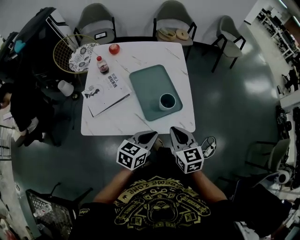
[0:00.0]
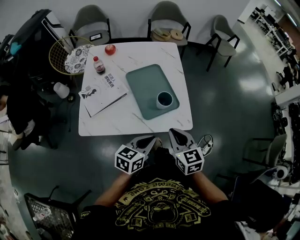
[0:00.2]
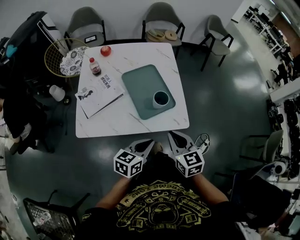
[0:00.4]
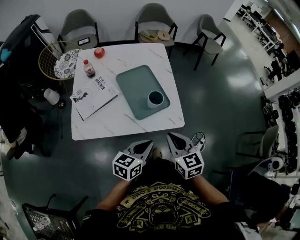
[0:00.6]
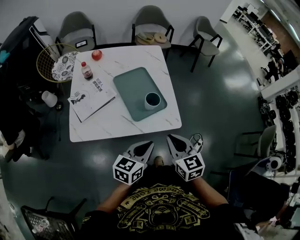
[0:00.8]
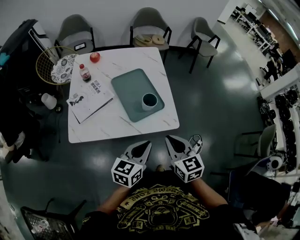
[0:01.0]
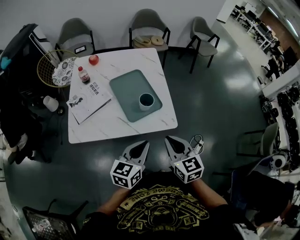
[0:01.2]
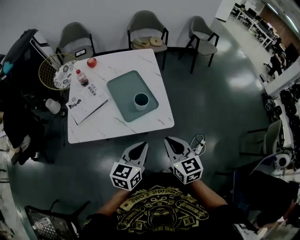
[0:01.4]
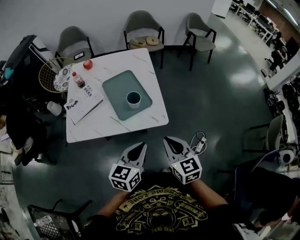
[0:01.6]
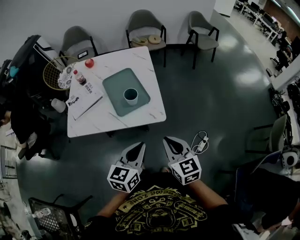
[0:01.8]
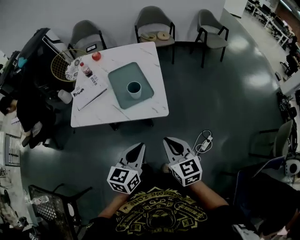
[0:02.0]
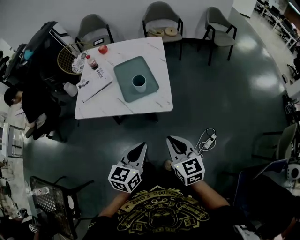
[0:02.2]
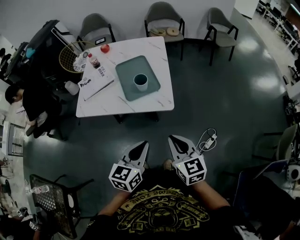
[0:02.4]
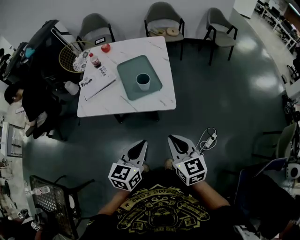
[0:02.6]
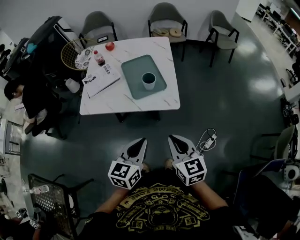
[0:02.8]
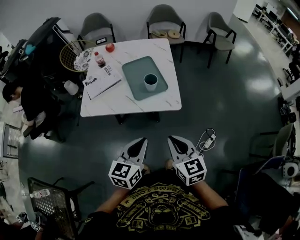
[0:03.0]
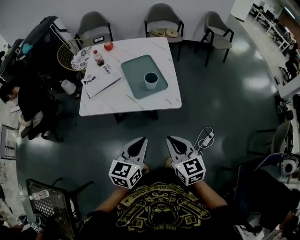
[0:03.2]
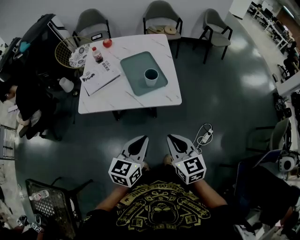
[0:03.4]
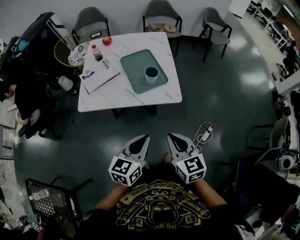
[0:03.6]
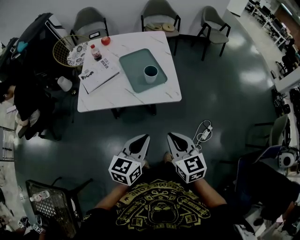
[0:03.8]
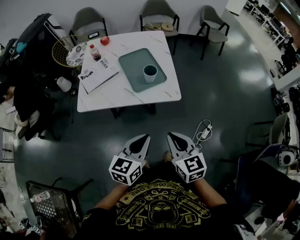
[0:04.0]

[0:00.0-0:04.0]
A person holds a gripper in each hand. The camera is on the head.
0:00.0 to 0:01.4: The right gripper goes approximately 10 cm to the right and backward. The left gripper heads backward, upward and to the right, covering some 10 cm.
0:01.4 to 0:02.6: The right gripper moves backward and to the right, some 10 cm; the left gripper moves backward, approximately 10 cm.
0:02.6 to 0:04.0: Both grippers travel together to the left, approximately 5 cm.

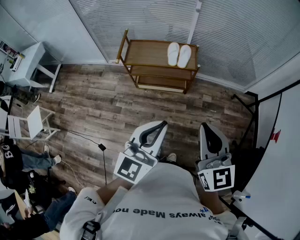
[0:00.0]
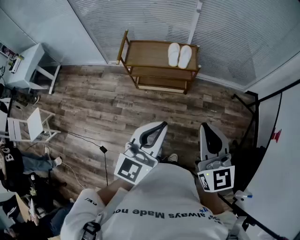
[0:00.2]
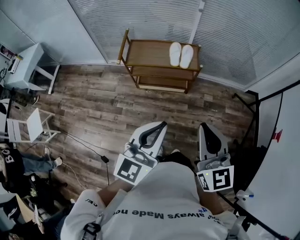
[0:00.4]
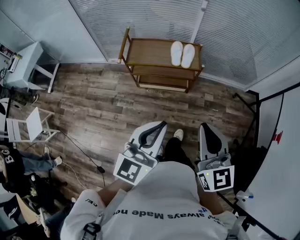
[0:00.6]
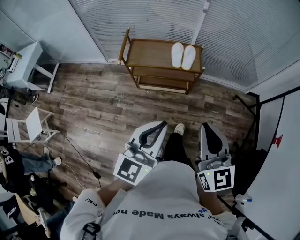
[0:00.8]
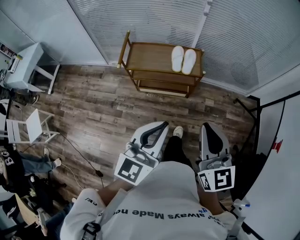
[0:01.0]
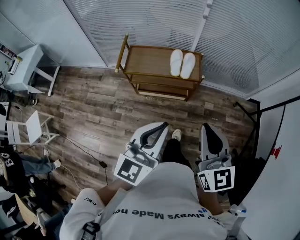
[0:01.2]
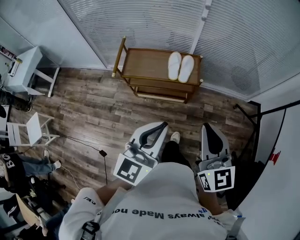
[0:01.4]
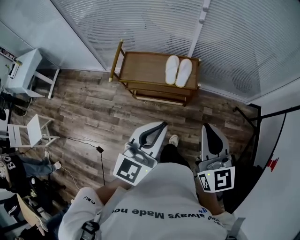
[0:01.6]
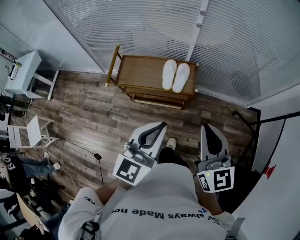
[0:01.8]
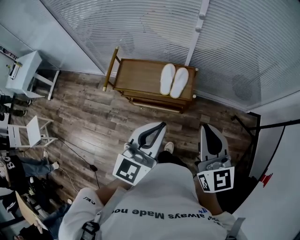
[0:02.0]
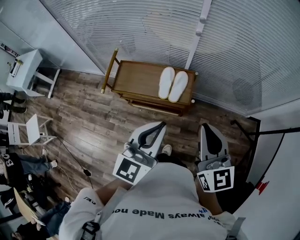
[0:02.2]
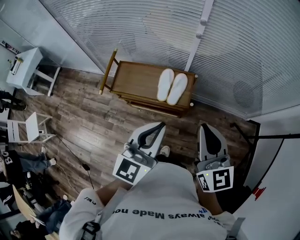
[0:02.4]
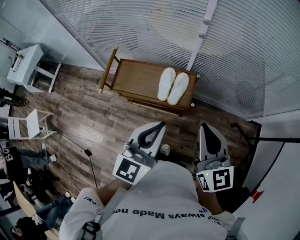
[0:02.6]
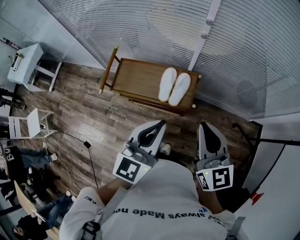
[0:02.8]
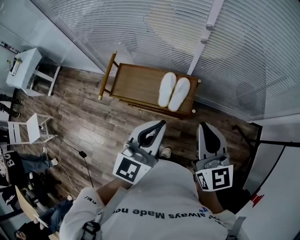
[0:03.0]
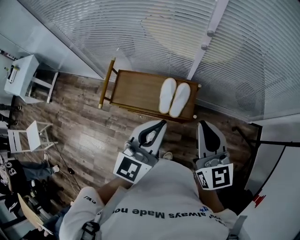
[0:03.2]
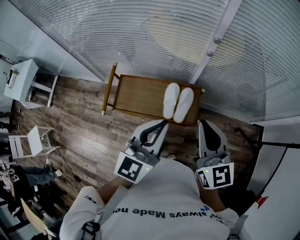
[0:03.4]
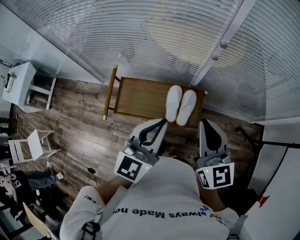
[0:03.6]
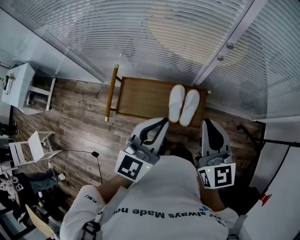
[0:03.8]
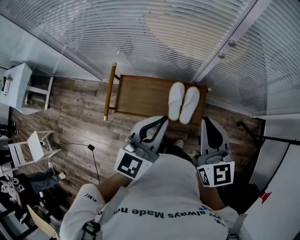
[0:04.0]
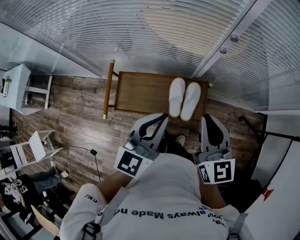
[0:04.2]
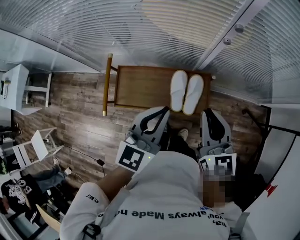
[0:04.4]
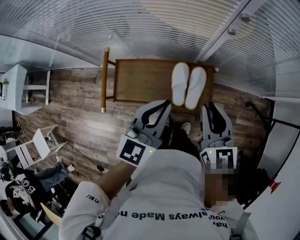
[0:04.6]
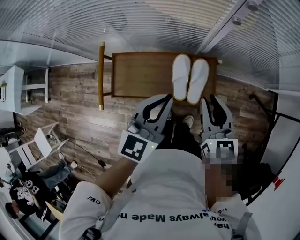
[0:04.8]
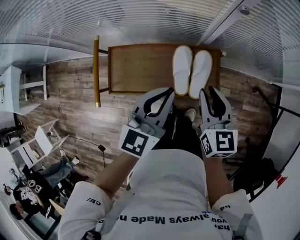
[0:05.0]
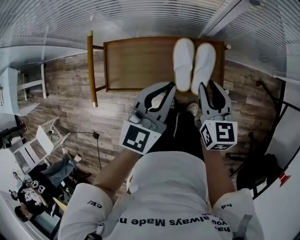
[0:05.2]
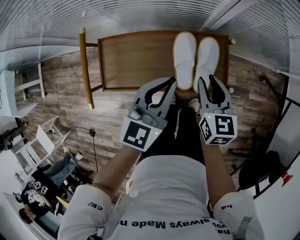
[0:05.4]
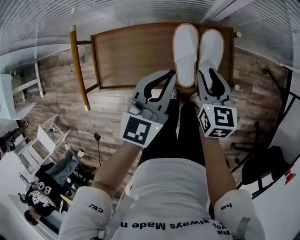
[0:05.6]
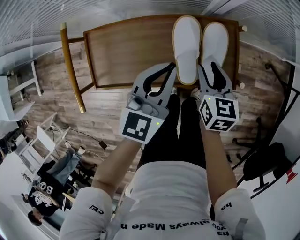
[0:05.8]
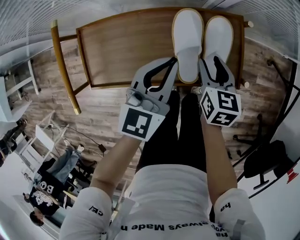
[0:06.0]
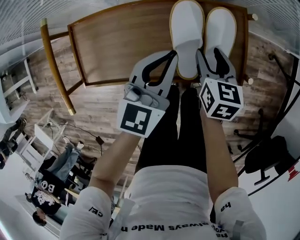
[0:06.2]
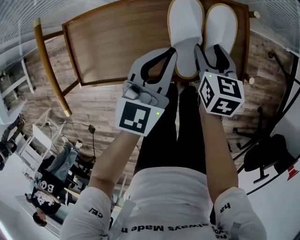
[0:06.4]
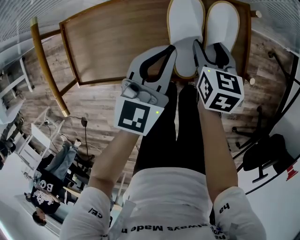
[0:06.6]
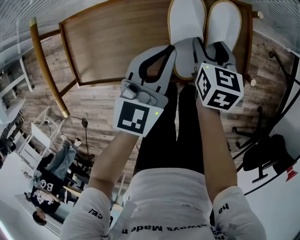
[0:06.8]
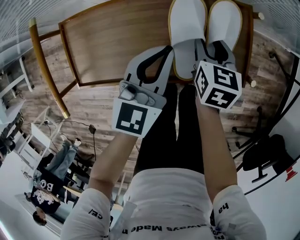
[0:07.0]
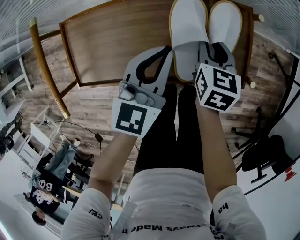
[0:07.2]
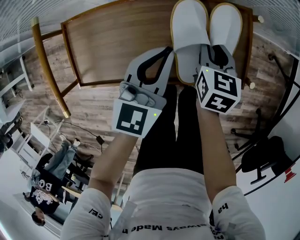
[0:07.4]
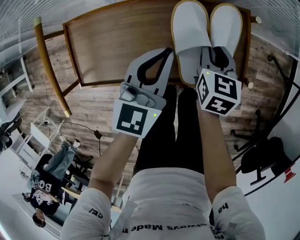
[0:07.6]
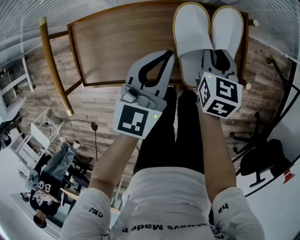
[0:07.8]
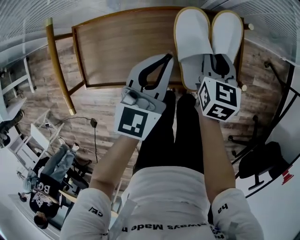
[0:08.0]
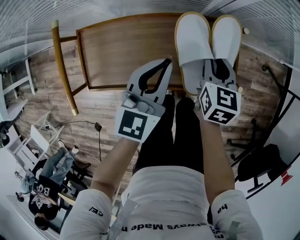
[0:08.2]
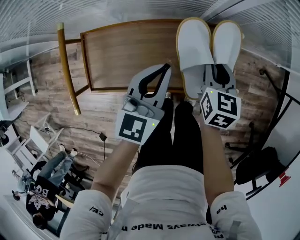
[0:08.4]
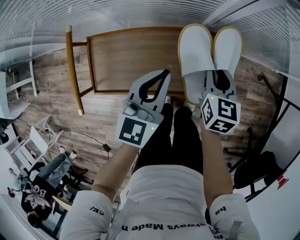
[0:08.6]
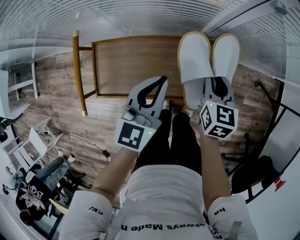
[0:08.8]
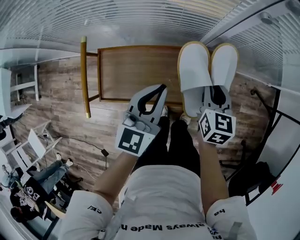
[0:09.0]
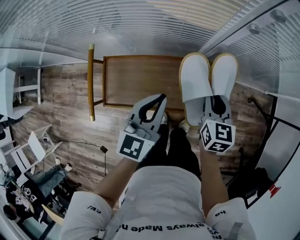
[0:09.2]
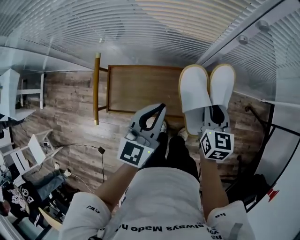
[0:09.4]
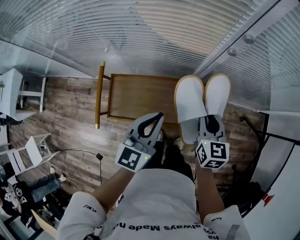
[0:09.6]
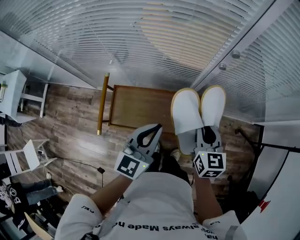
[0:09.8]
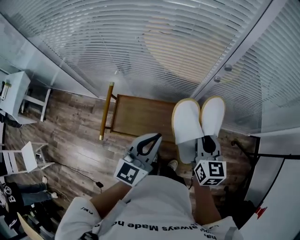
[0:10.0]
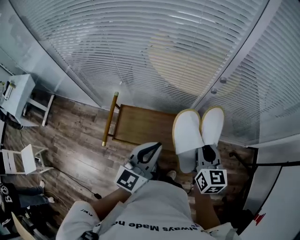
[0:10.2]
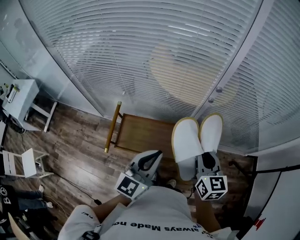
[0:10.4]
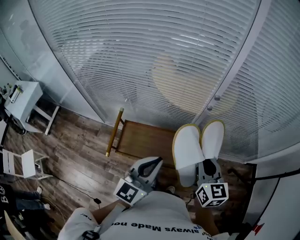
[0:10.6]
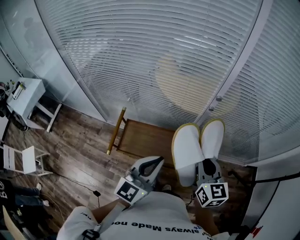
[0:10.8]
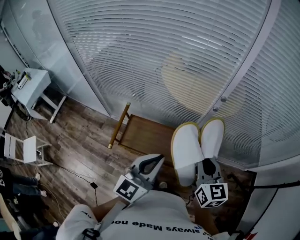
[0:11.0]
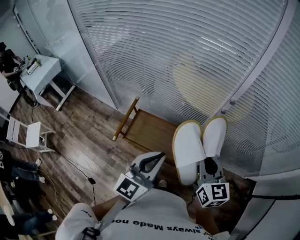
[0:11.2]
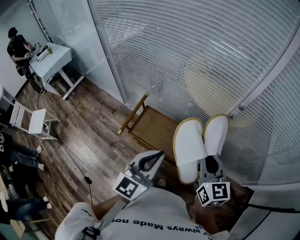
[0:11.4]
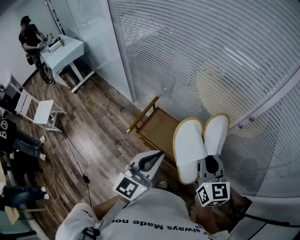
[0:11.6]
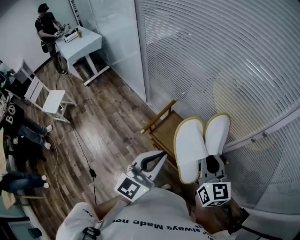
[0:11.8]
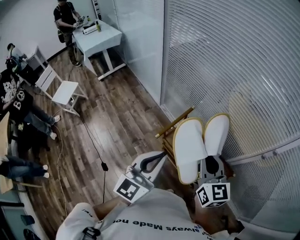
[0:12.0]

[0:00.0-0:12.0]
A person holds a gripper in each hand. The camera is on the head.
0:00.0 to 0:01.6: Both grippers travel together forward, some 20 cm.
0:01.6 to 0:03.0: The two grippers go some 20 cm forward.
0:03.0 to 0:04.4: The two grippers go some 20 cm forward, to the left and downward.
0:04.4 to 0:06.0: Both grippers travel together downward, some 35 cm. The right gripper rotates approximately 30 degrees, and opens up.
0:06.0 to 0:07.6: The right gripper closes its fingers.
0:07.6 to 0:09.0: The two grippers go about 15 cm upward.
0:09.0 to 0:10.4: The right gripper shifts about 30 cm upward, and swivels roughly 20 degrees, while the left gripper goes approximately 25 cm upward and backward.
0:10.4 to 0:12.0: The left gripper shifts by about 25 cm, and rotates some 40 degrees, while the right gripper moves approximately 30 cm, and swivels roughly 40 degrees.

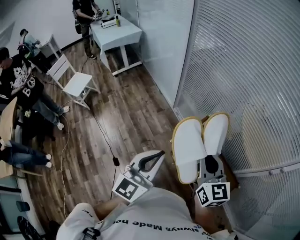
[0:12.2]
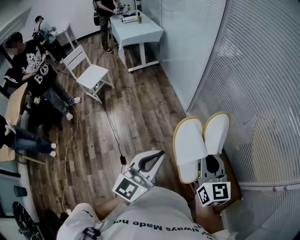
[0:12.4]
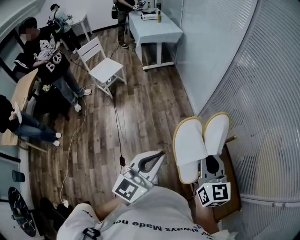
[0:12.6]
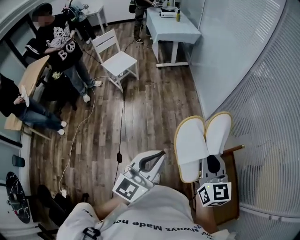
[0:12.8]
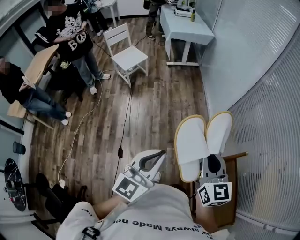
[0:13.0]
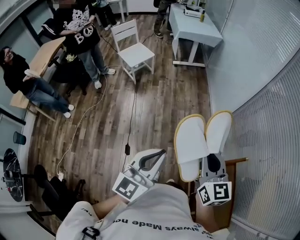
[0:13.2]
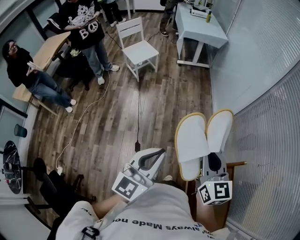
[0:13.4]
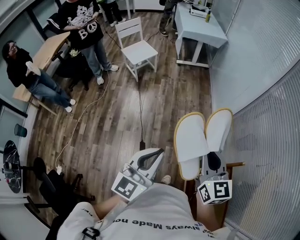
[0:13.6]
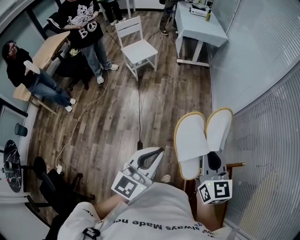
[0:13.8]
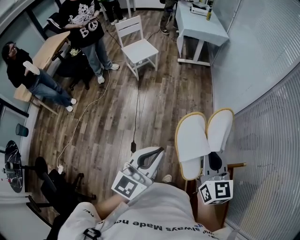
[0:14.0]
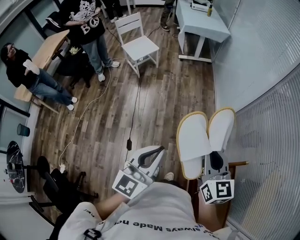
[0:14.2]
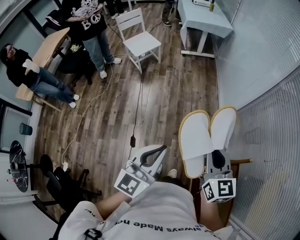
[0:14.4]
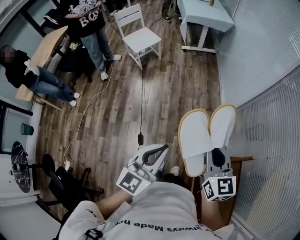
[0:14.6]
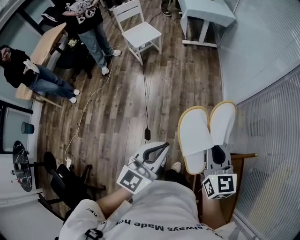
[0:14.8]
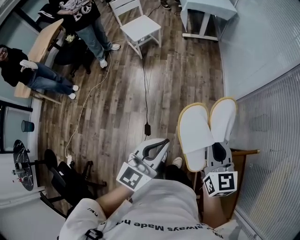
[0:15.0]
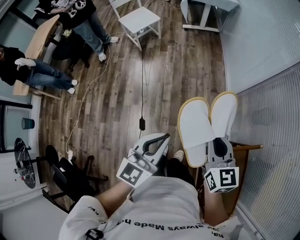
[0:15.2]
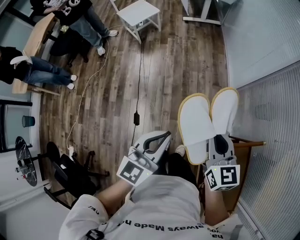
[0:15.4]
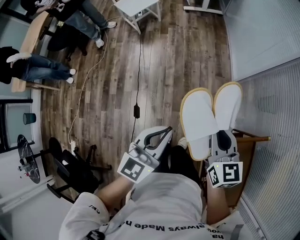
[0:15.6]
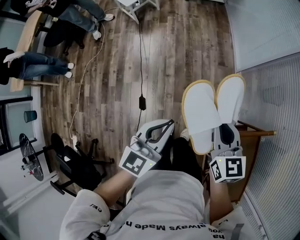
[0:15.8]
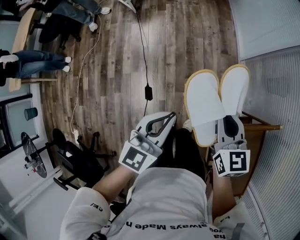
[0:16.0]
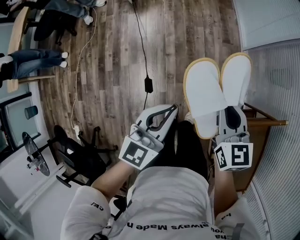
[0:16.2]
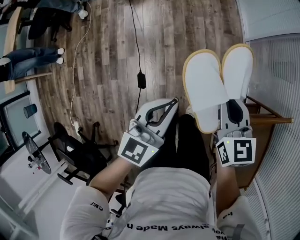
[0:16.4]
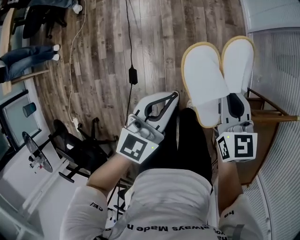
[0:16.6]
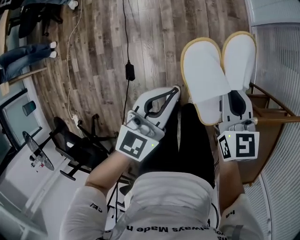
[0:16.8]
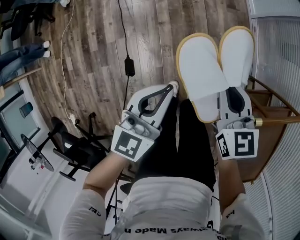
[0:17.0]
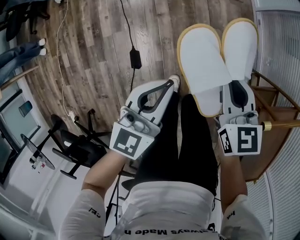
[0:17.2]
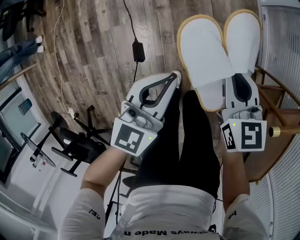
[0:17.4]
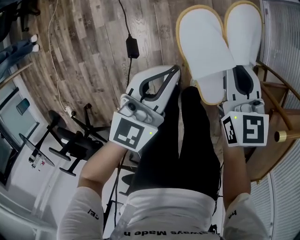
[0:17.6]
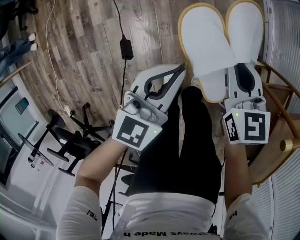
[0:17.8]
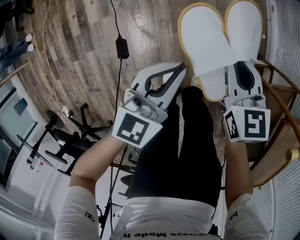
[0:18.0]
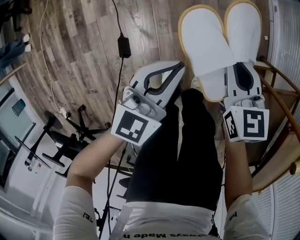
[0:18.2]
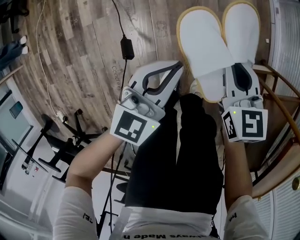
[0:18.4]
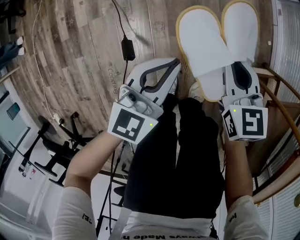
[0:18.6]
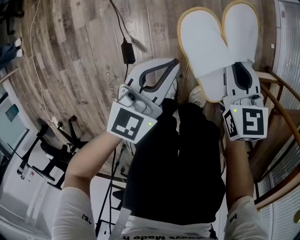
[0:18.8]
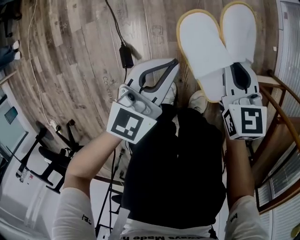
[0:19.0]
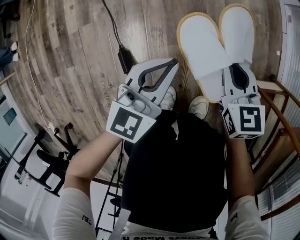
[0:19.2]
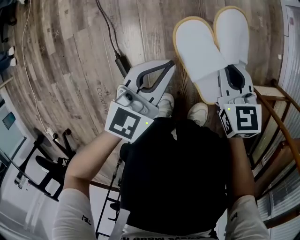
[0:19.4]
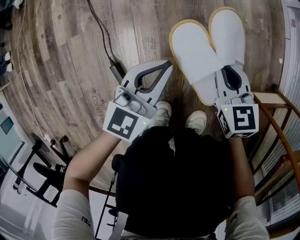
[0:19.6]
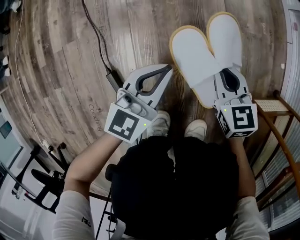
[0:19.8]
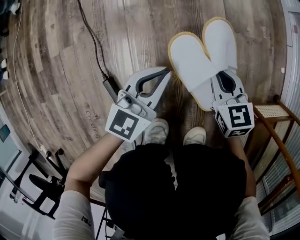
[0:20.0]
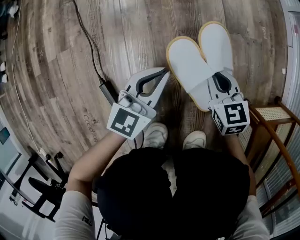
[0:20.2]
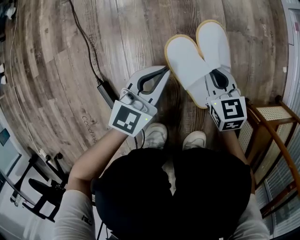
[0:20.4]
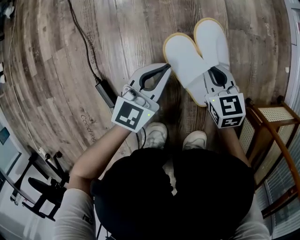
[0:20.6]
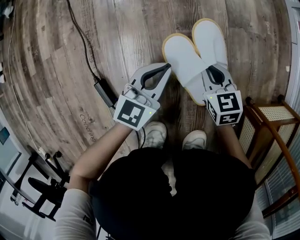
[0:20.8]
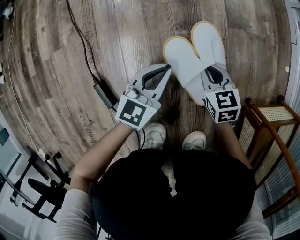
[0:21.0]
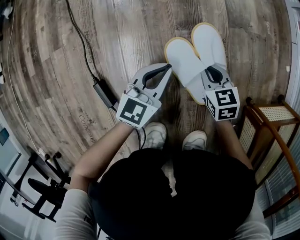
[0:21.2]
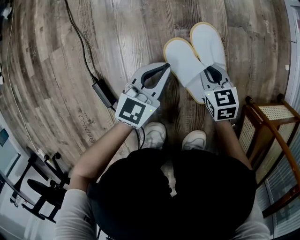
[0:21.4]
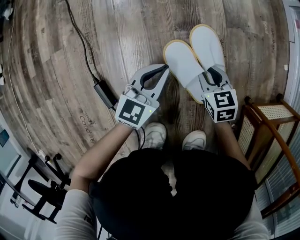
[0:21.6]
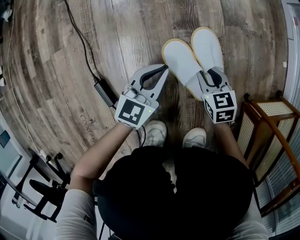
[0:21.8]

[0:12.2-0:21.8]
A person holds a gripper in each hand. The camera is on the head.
0:12.2 to 0:13.8: The left gripper ends up about 25 cm from where it was, and swivels about 30 degrees. Meanwhile the right gripper moves approximately 30 cm, and changes its angle by roughly 30 degrees.
0:13.8 to 0:15.4: The two grippers go roughly 15 cm downward.
0:15.4 to 0:17.0: The two grippers go about 30 cm downward.
0:17.0 to 0:18.6: Both grippers move downward, roughly 35 cm.
0:18.6 to 0:20.2: The grippers both shift downward by some 35 cm.
0:20.2 to 0:21.8: The grippers both shift downward by some 10 cm.
